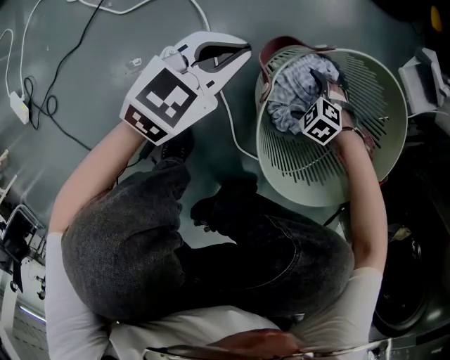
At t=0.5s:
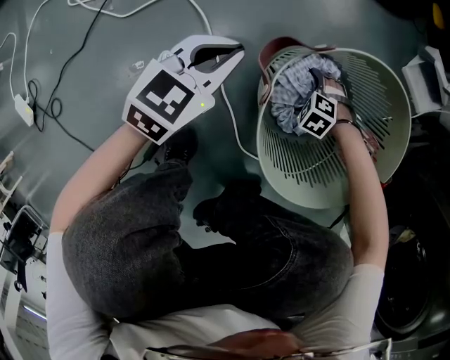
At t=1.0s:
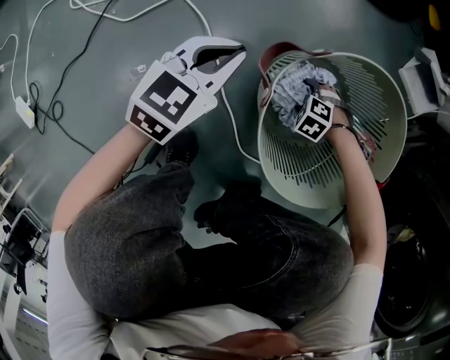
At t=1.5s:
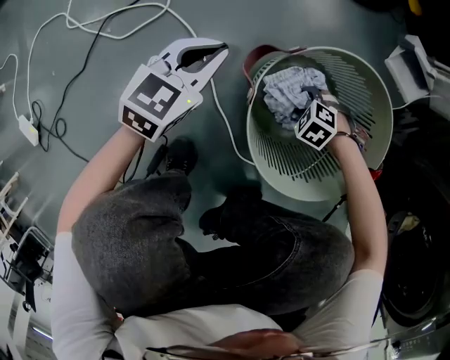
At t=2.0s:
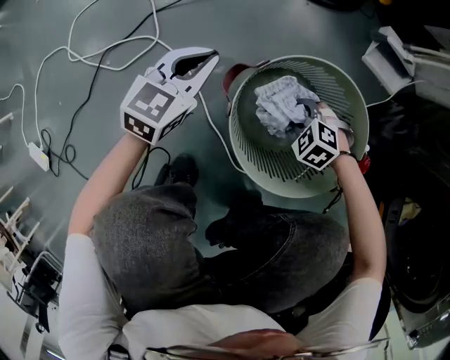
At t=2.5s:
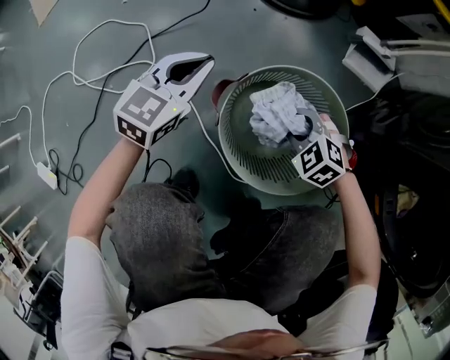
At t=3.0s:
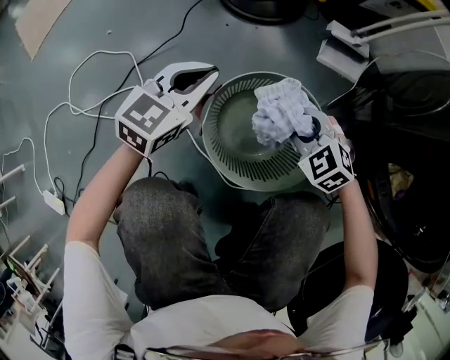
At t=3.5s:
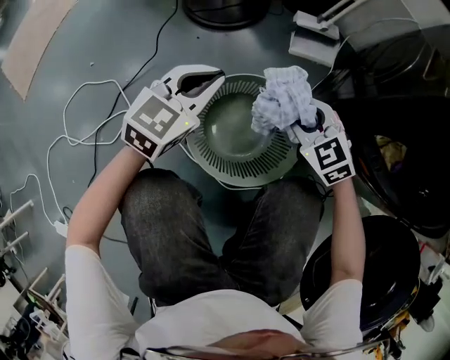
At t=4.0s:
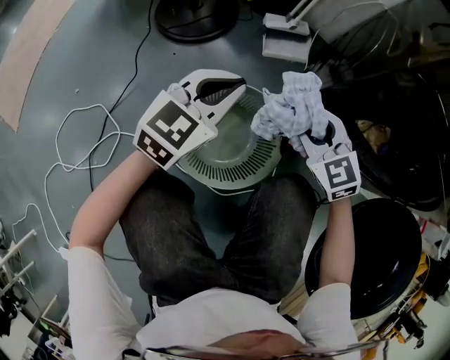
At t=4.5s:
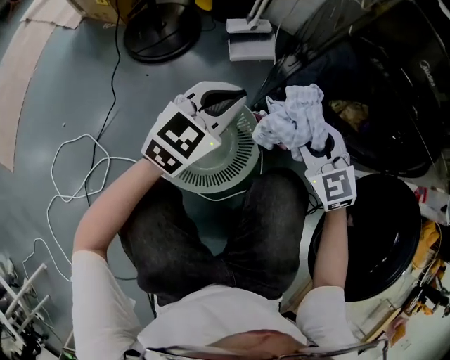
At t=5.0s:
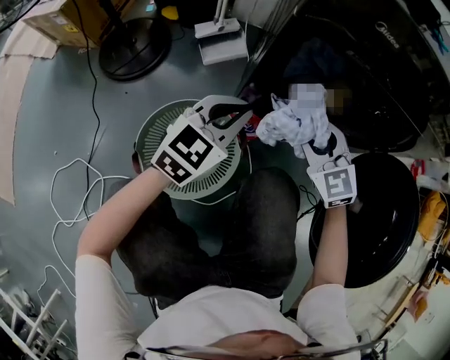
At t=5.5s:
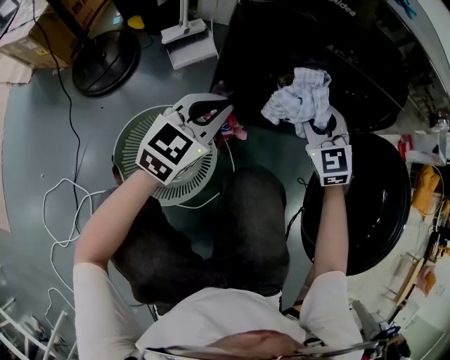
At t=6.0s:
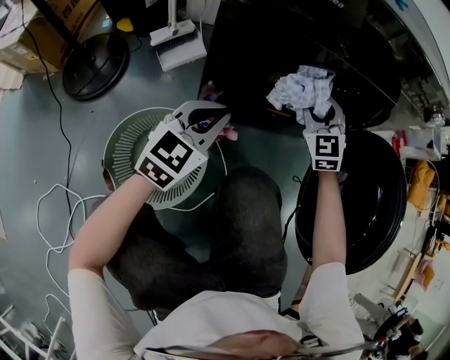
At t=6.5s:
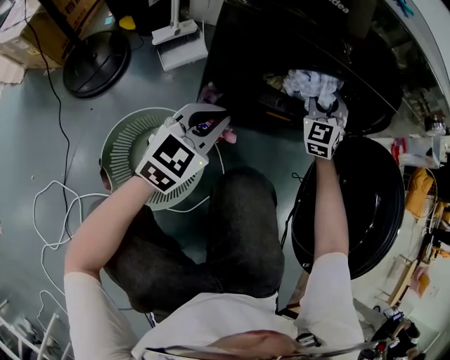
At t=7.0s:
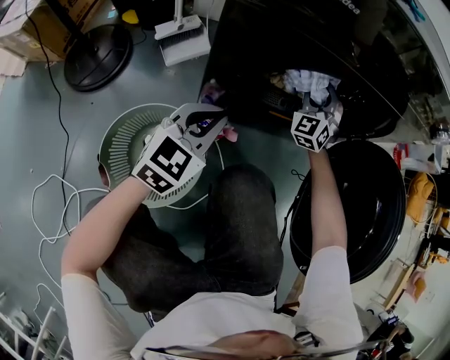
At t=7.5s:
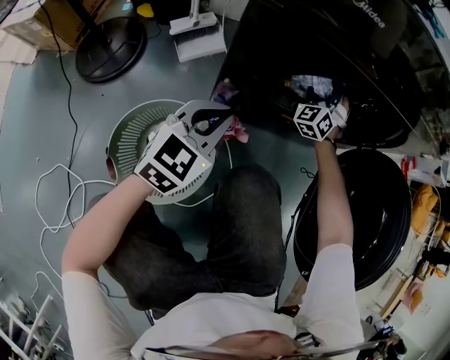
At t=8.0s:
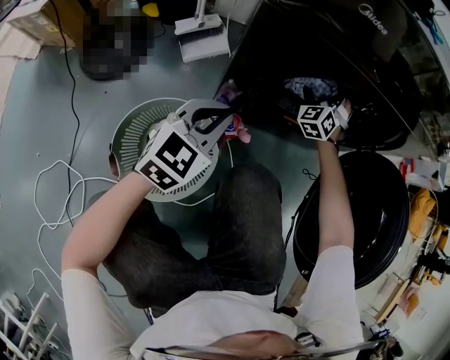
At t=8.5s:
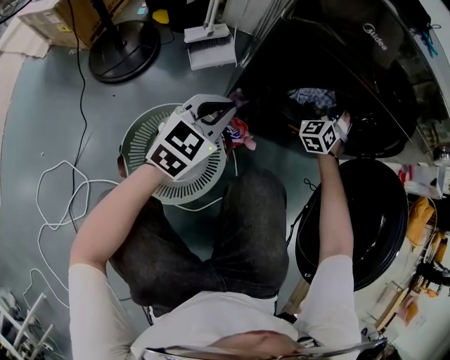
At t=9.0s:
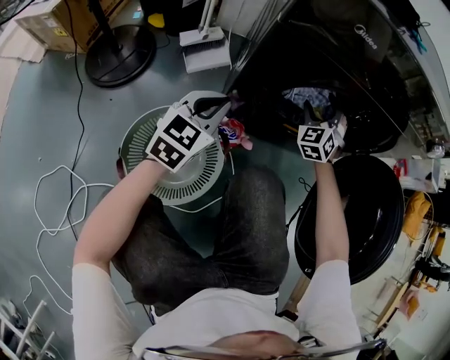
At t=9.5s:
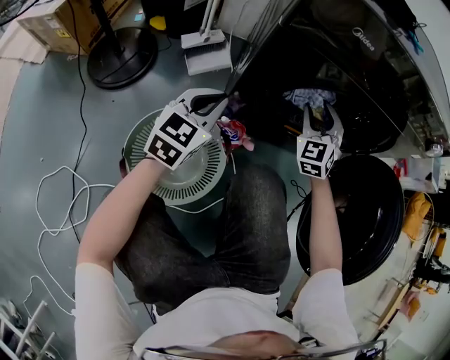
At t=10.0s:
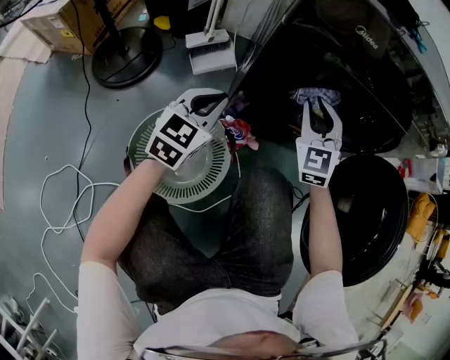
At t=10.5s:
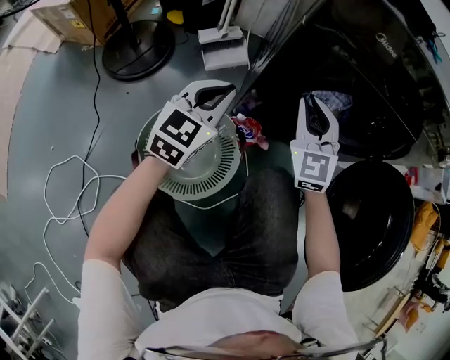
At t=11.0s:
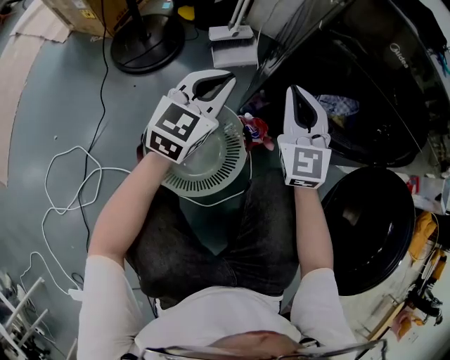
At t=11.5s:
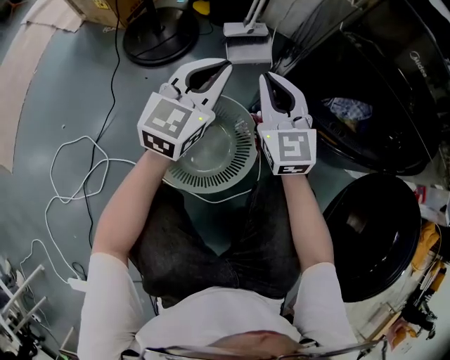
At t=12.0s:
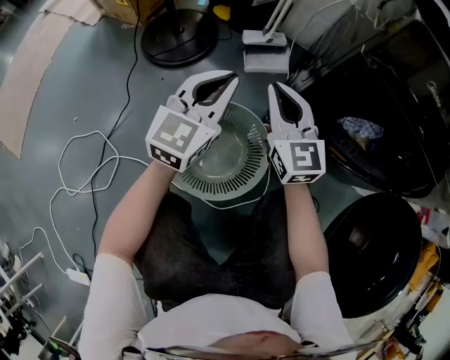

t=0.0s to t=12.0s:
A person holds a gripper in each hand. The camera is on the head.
t=0.0s to t=2.0s: The right gripper heads upward, covering about 15 cm, and closes, while the left gripper moves approximately 10 cm.
t=2.0s to t=4.0s: The right gripper shifts about 35 cm upward, and tilts its fingers some 40 degrees upward. The left gripper changes place by some 35 cm, and changes its angle by roughly 40 degrees.
t=4.0s to t=6.0s: The right gripper shifts by about 30 cm, and turns by about 50 degrees. The left gripper moves about 25 cm, and swivels approximately 20 degrees.
t=6.0s to t=8.0s: The right gripper is displaced forward and downward by approximately 15 cm, swivels about 30 degrees, and opens.
t=8.0s to t=10.0s: The left gripper is displaced to the left by some 5 cm. Meanwhile the right gripper travels backward, upward and to the left by approximately 20 cm, rotates approximately 30 degrees, and closes up.
t=10.0s to t=12.0s: The left gripper changes place by some 15 cm, and swivels roughly 20 degrees. Meanwhile the right gripper shifts by about 25 cm, and changes its angle by about 40 degrees.

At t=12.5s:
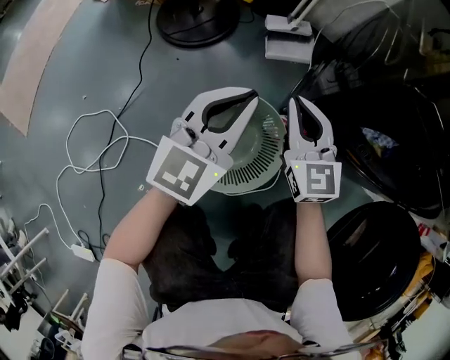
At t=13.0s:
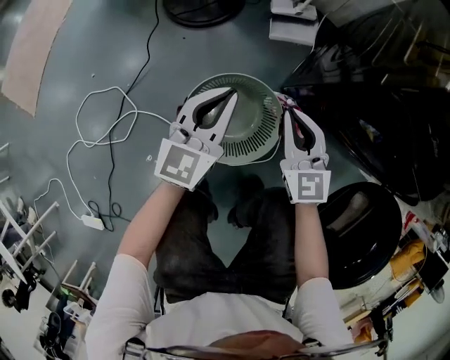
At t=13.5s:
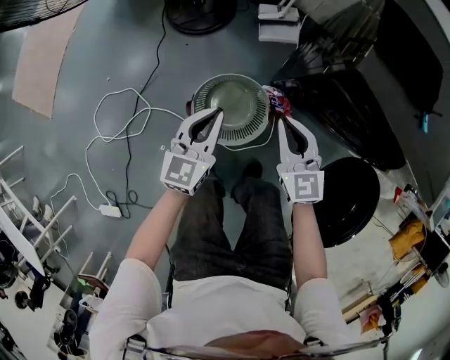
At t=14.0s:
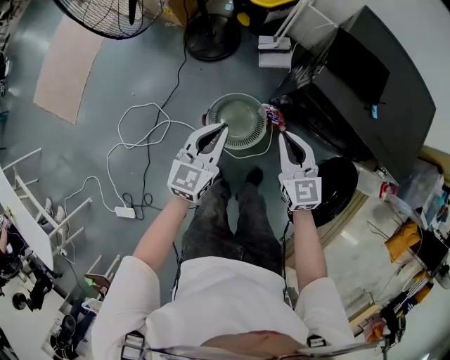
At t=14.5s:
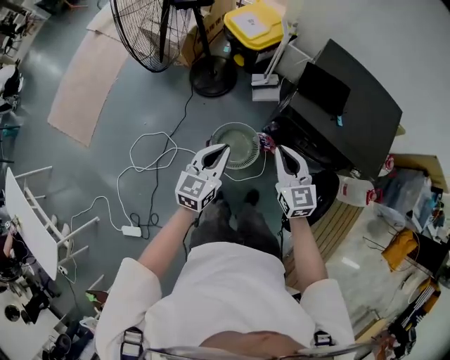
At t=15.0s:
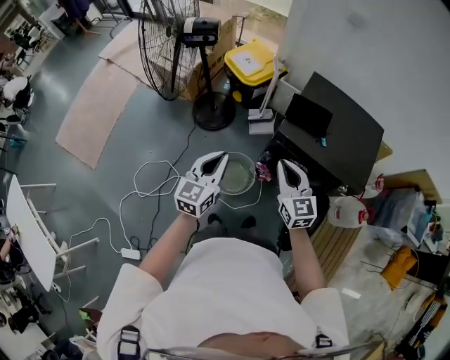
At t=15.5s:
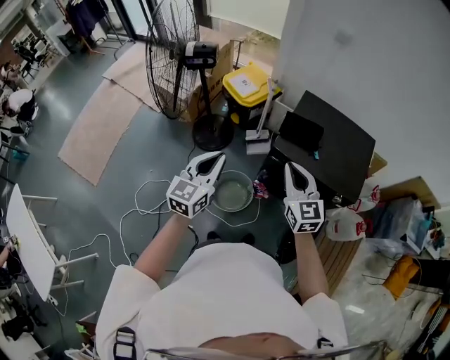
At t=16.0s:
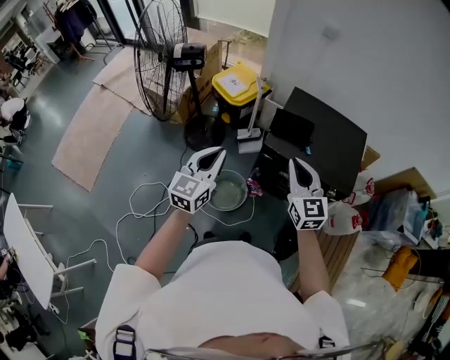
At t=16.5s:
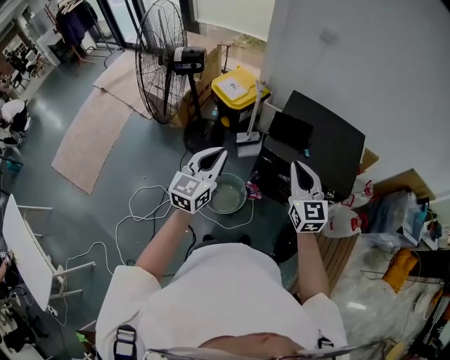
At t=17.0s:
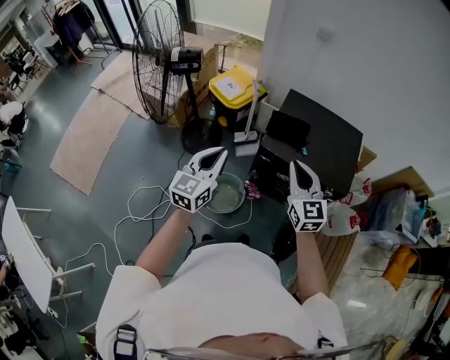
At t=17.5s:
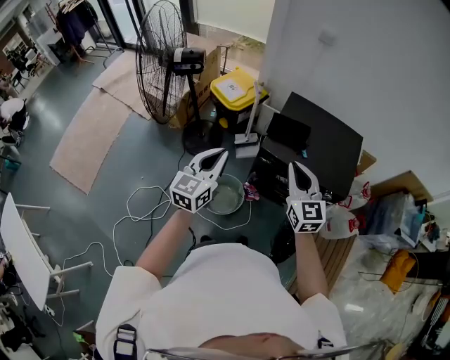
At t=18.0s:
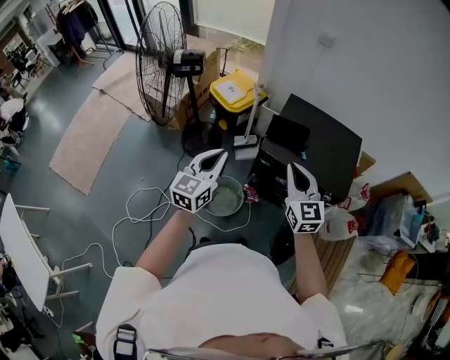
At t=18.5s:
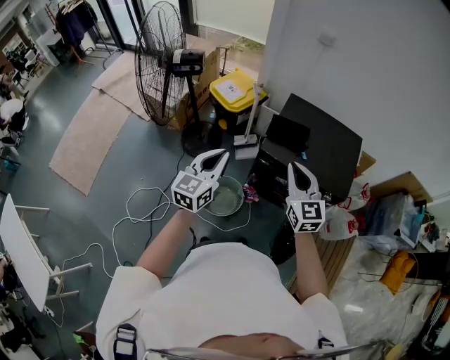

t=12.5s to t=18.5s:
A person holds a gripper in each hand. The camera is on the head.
t=12.5s to t=14.5s: Both grippers move upward, approximately 50 cm.
t=14.5s to t=16.5s: The right gripper moves upward and to the right, about 20 cm; the left gripper is displaced upward by roughly 20 cm.
t=16.5s to t=18.5s: The grippers make only small movements.

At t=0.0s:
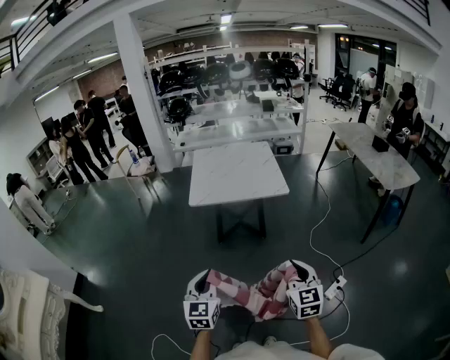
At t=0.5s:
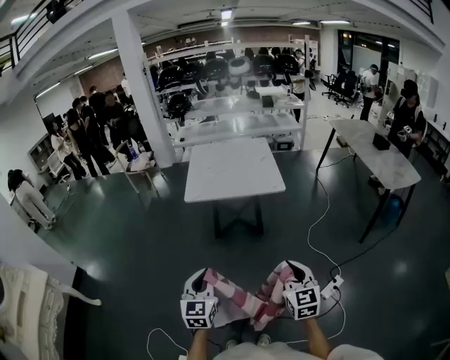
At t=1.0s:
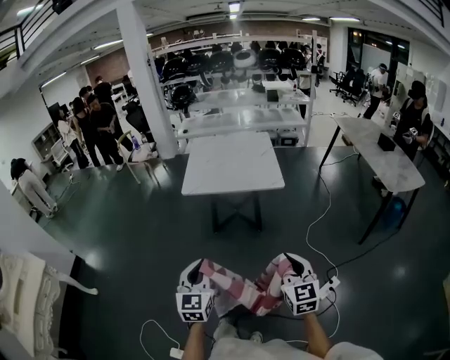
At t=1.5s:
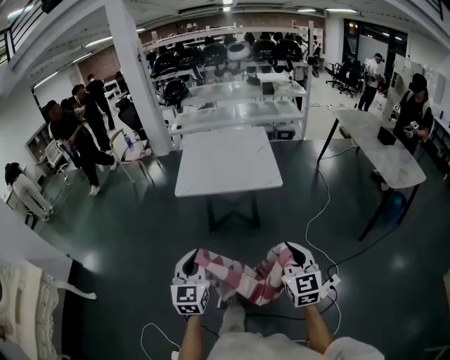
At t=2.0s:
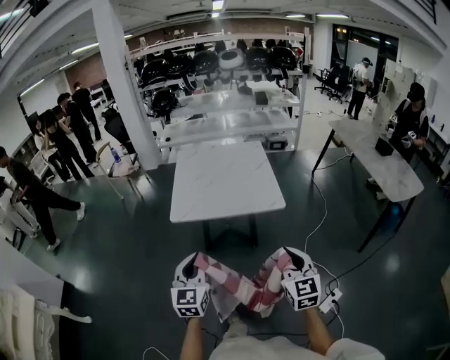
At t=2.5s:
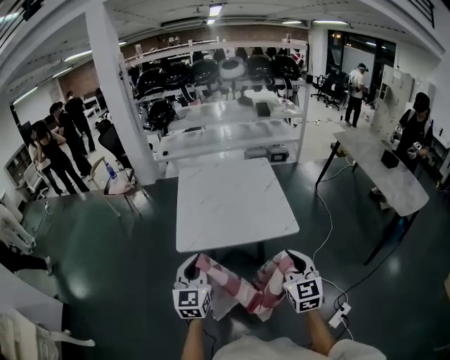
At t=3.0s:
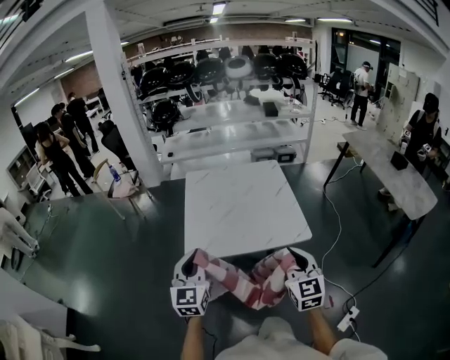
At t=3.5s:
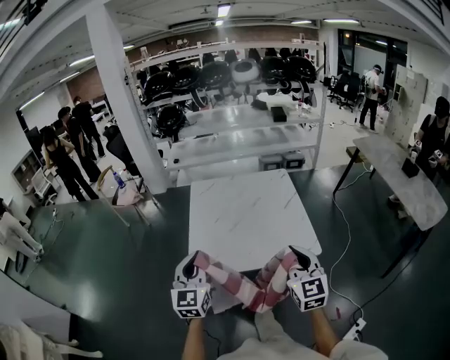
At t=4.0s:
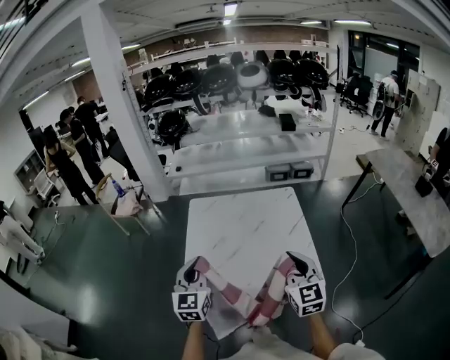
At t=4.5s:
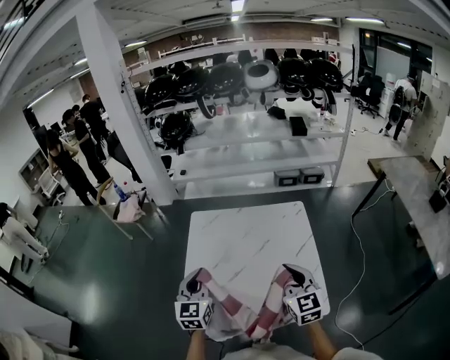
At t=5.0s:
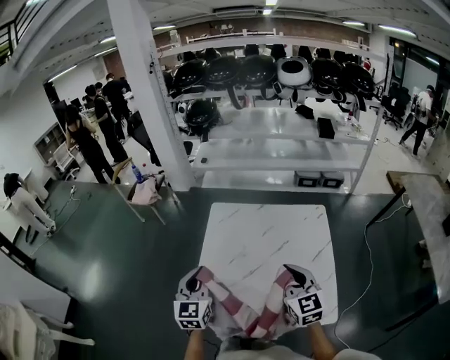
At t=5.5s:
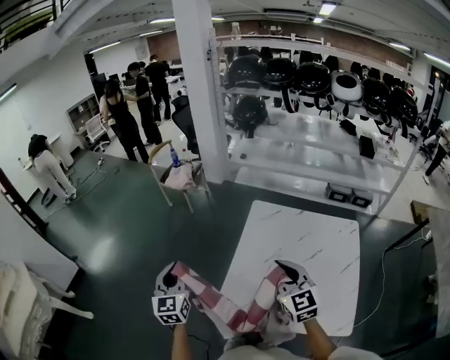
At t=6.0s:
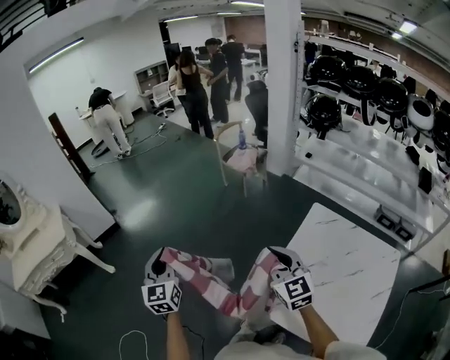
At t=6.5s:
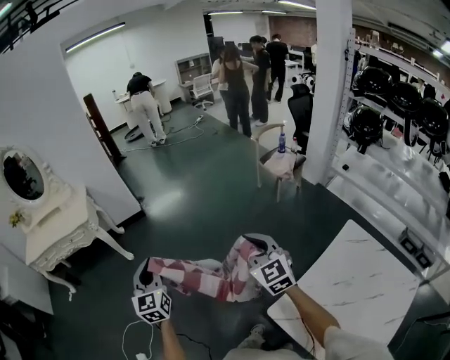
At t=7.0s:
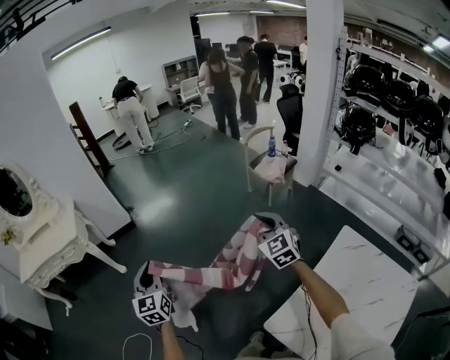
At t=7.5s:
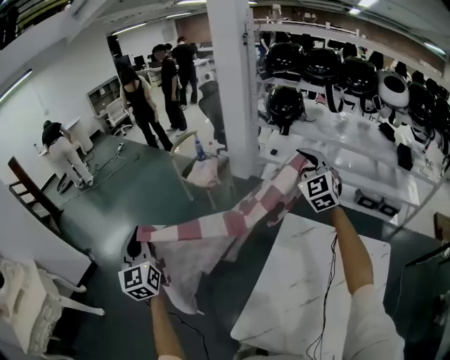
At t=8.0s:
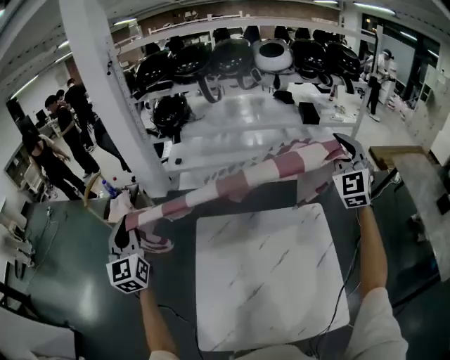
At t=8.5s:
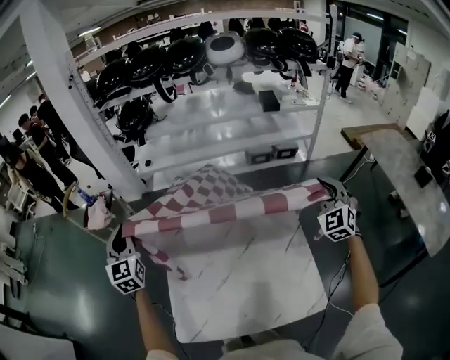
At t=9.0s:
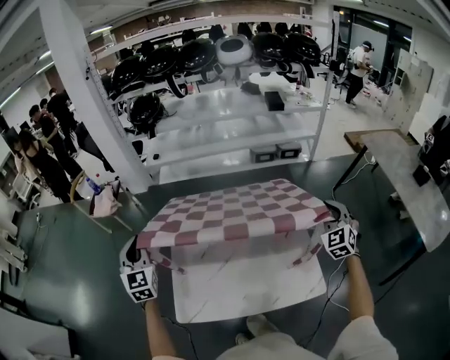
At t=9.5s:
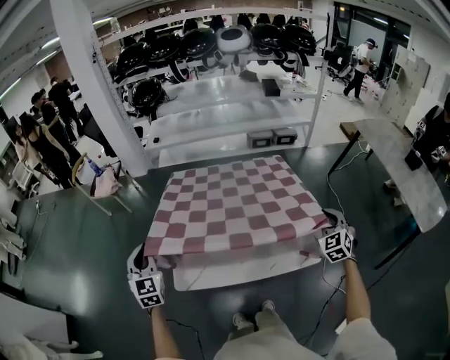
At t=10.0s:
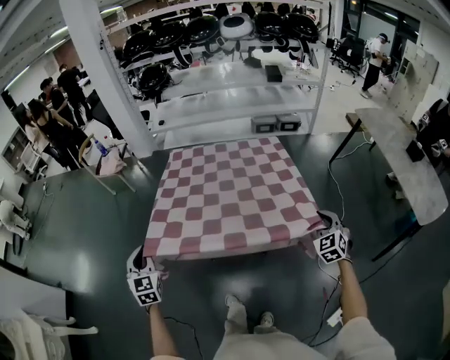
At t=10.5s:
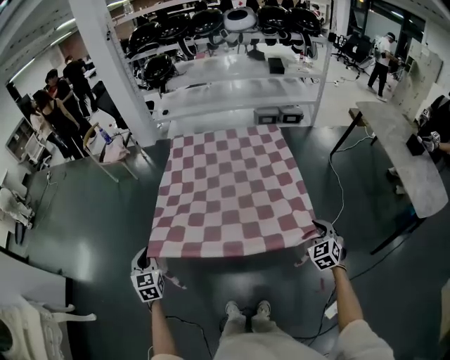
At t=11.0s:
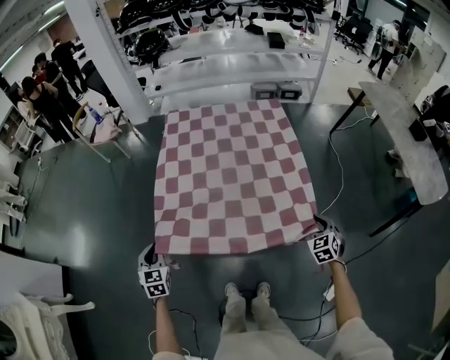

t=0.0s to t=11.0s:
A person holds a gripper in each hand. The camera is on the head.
t=0.0s to t=2.0s: The grippers both shift forward by approximately 25 cm.
t=2.0s to t=3.5s: The grippers both shift forward by some 30 cm.
t=3.5s to t=5.5s: The right gripper changes place by approximately 35 cm, and swivels approximately 30 degrees, while the left gripper shifts by roughly 30 cm, and changes its angle by approximately 30 degrees.
t=5.5s to t=7.5s: The right gripper ends up about 50 cm from where it was, and changes its angle by roughly 30 degrees, while the left gripper changes place by some 30 cm, and rotates about 20 degrees.
t=7.5s to t=9.0s: The right gripper shifts by roughly 70 cm, and changes its angle by some 50 degrees. Meanwhile the left gripper changes place by approximately 40 cm, and turns by roughly 40 degrees.
t=9.0s to t=11.0s: The two grippers go some 40 cm backward and downward. The left gripper rotates some 30 degrees. The right gripper rotates about 30 degrees.
